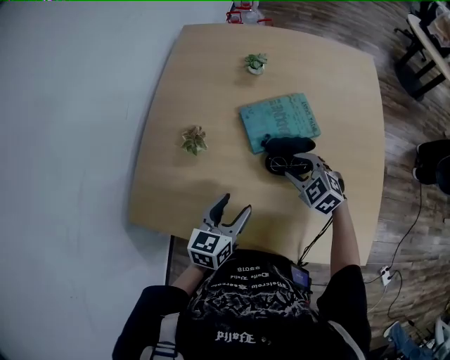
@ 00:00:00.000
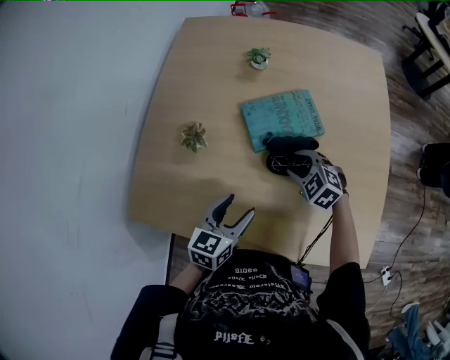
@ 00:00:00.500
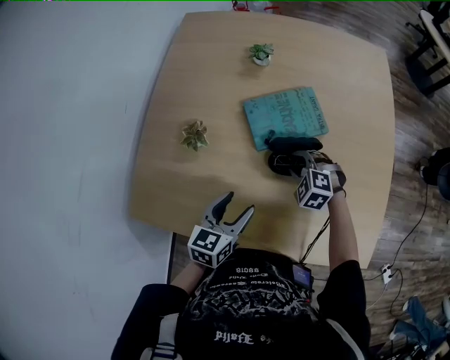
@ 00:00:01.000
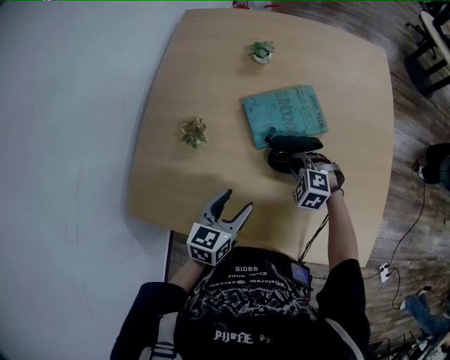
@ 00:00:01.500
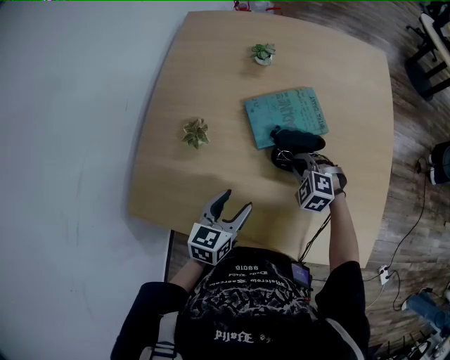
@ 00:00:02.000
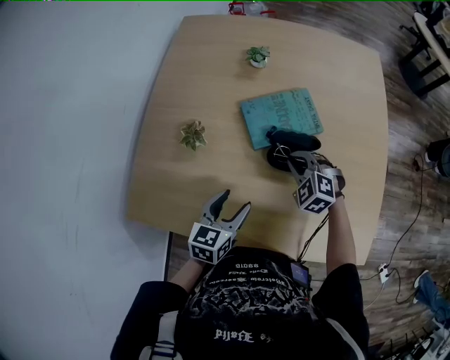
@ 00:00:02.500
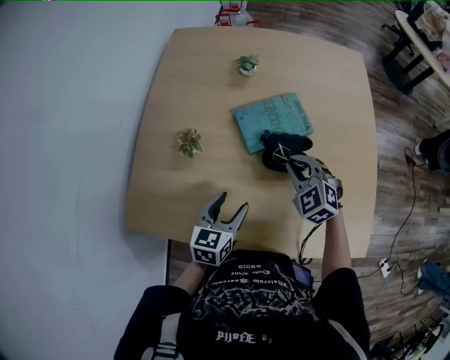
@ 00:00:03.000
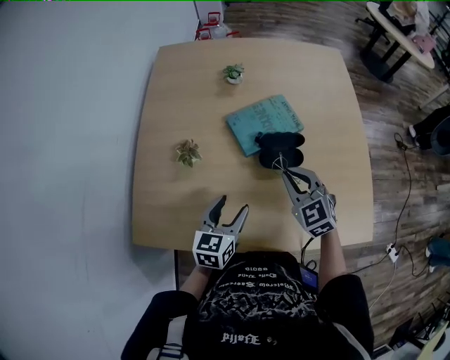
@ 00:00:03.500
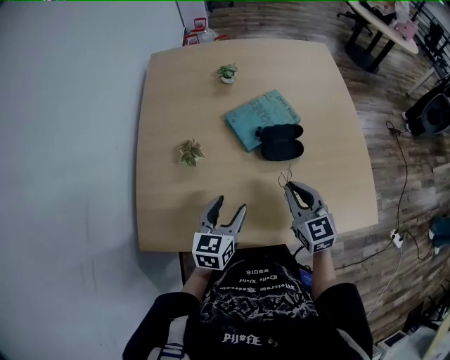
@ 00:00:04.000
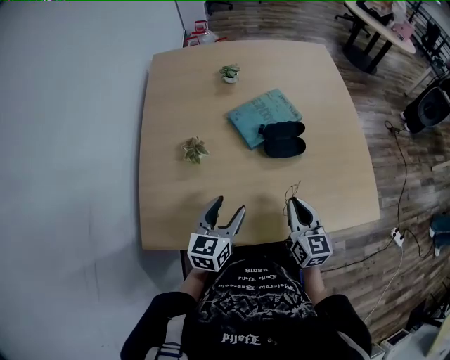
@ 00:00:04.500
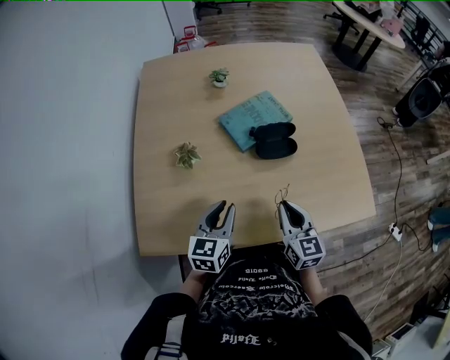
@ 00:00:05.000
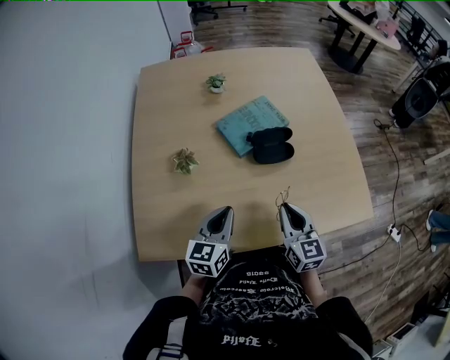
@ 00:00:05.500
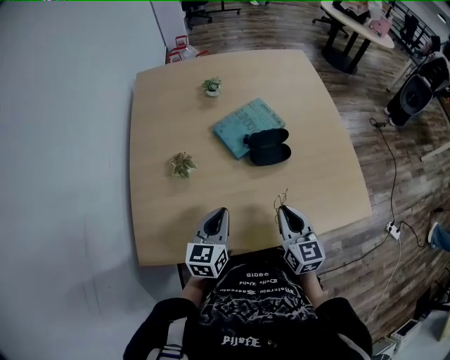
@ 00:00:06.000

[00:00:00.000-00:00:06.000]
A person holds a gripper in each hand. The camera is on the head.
00:00:00.000 to 00:00:02.000: The right gripper shifts some 5 cm downward, rotates some 20 degrees, and closes.
00:00:02.000 to 00:00:04.000: The right gripper travels upward and backward by approximately 20 cm, and tilts its fingers roughly 30 degrees upward; the left gripper goes roughly 5 cm to the left.
00:00:04.000 to 00:00:06.000: The right gripper heads backward, covering some 5 cm. The left gripper closes its fingers.

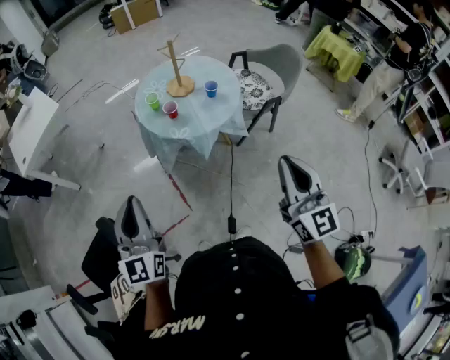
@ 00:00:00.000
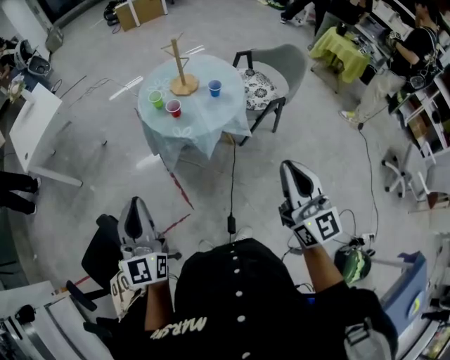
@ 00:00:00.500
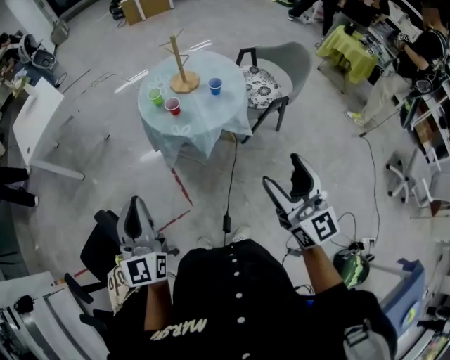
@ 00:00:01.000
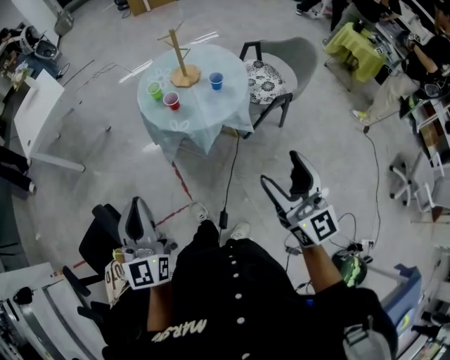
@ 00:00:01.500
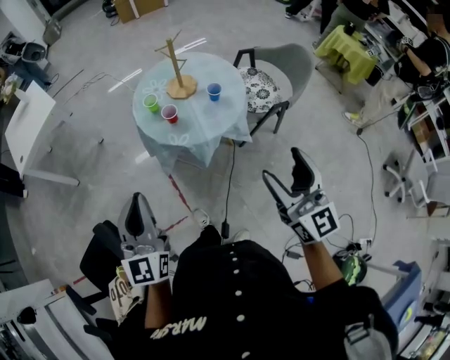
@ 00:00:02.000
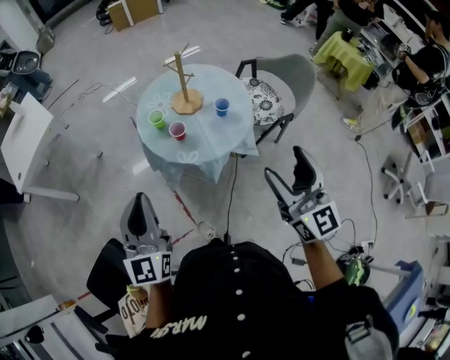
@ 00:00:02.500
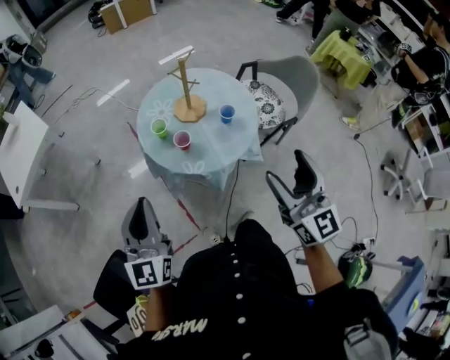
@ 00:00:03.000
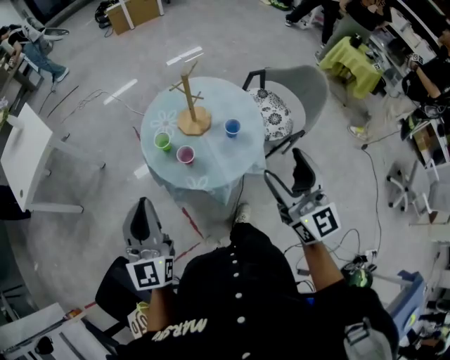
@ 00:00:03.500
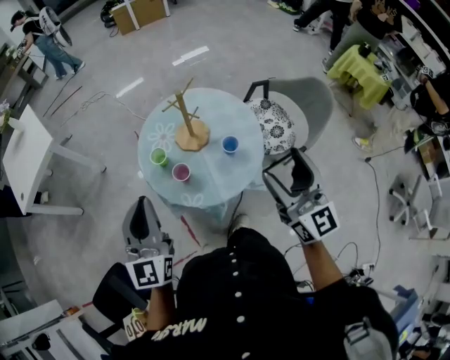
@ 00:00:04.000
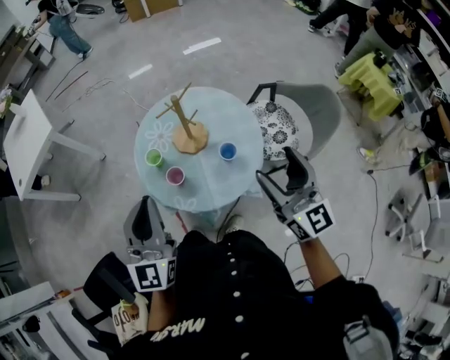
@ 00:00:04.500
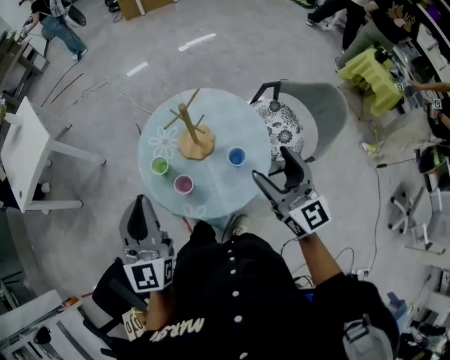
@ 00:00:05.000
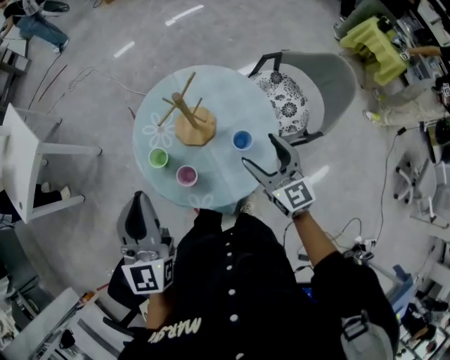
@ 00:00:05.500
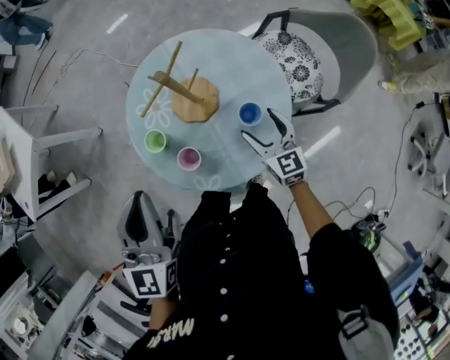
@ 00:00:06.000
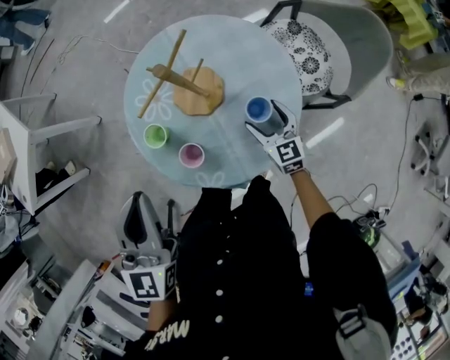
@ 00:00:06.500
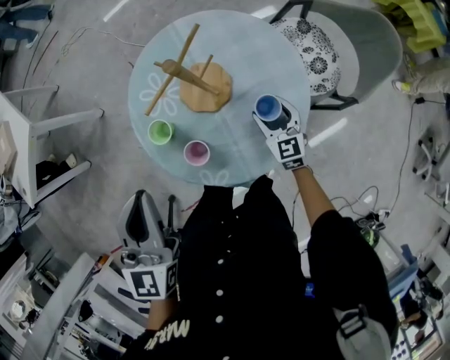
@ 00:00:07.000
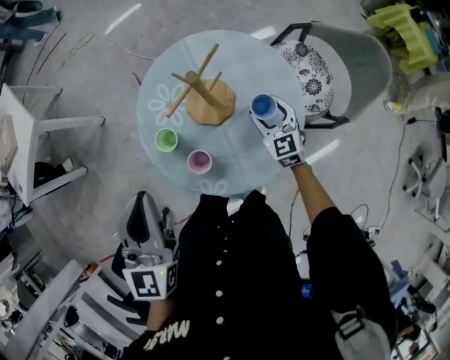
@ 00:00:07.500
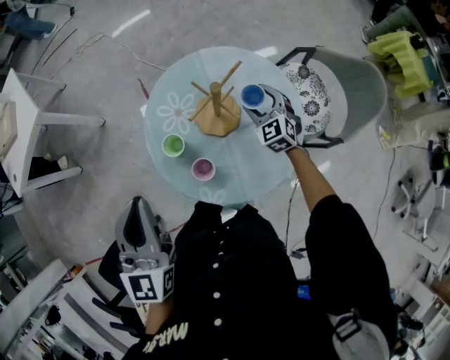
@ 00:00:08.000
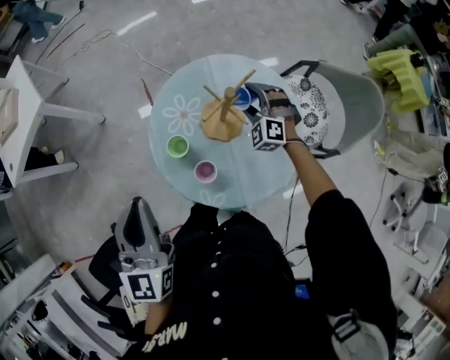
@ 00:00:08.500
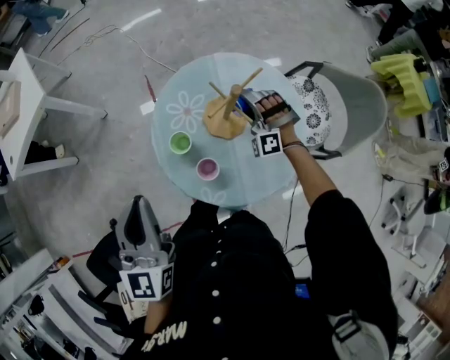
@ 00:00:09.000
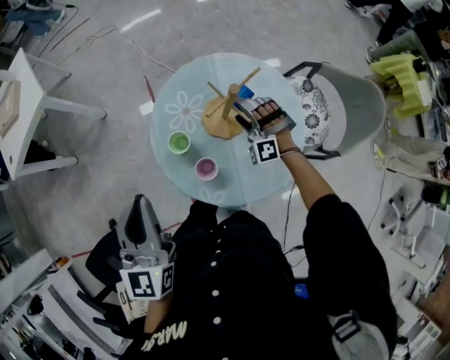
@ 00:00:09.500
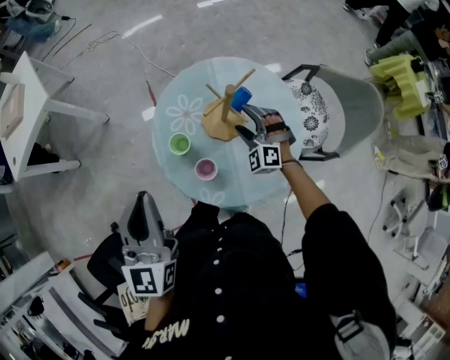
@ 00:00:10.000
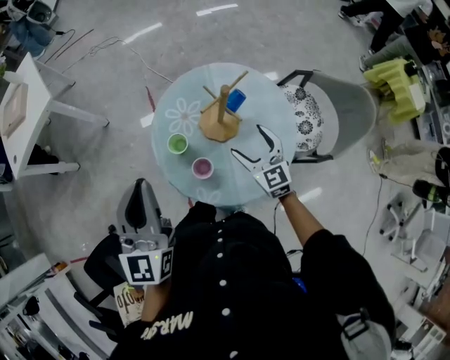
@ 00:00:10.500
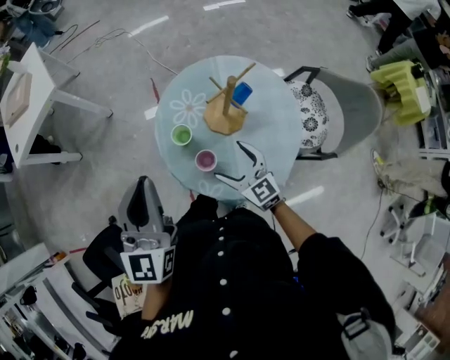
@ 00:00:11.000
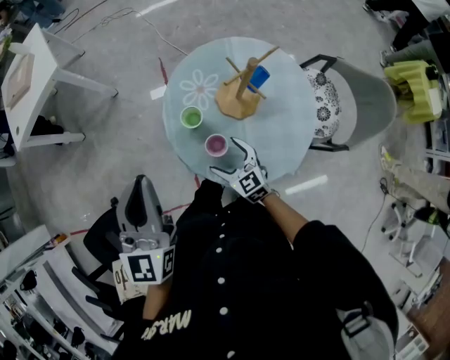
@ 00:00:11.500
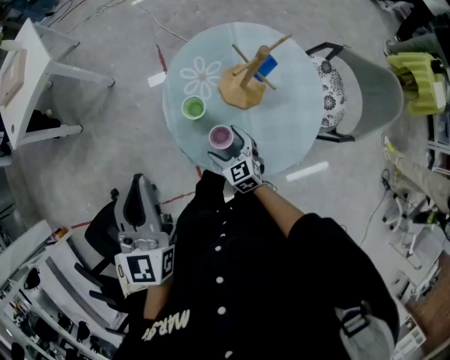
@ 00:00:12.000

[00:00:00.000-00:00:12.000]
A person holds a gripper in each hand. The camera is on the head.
00:00:00.000 to 00:00:02.000: The right gripper moves forward, some 10 cm, and opens its fingers; the left gripper heads forward and to the right, covering some 10 cm.
00:00:02.000 to 00:00:04.000: The grippers both shift forward by some 30 cm.
00:00:04.000 to 00:00:06.000: The right gripper goes approximately 40 cm downward and forward, and tips its fingers downward by some 30 degrees, while the left gripper heads forward and downward, covering about 20 cm.
00:00:06.000 to 00:00:08.000: The left gripper shifts about 10 cm to the left, while the right gripper heads forward, covering roughly 15 cm, and changes its angle by roughly 40 degrees.
00:00:08.000 to 00:00:10.000: The right gripper is displaced to the left by some 10 cm, and rotates roughly 30 degrees.
00:00:10.000 to 00:00:12.000: The right gripper travels to the left, backward and downward by approximately 25 cm, and rotates around the line of its fingers by some 50 degrees, clockwise from behind. Meanwhile the left gripper goes about 5 cm to the left.

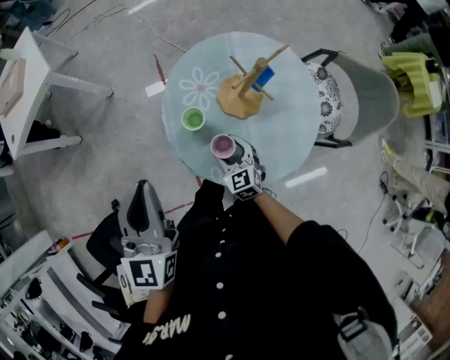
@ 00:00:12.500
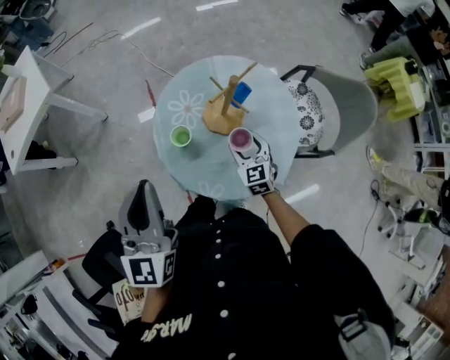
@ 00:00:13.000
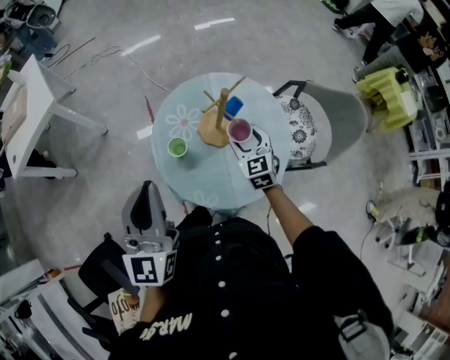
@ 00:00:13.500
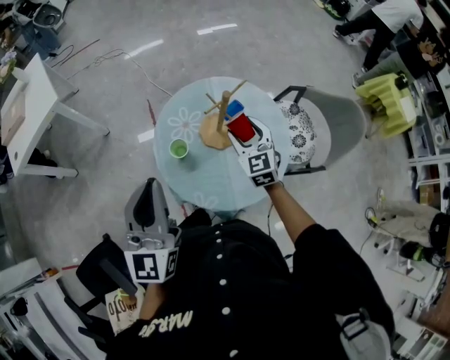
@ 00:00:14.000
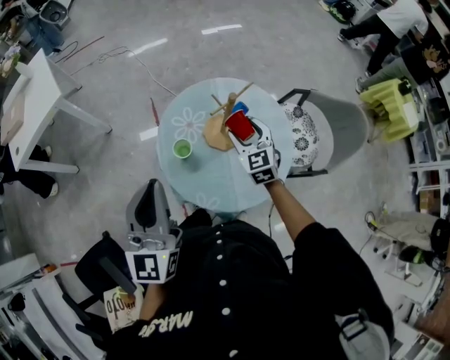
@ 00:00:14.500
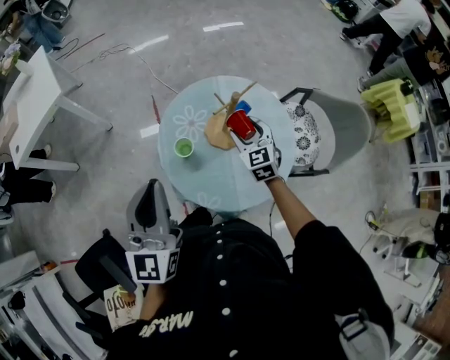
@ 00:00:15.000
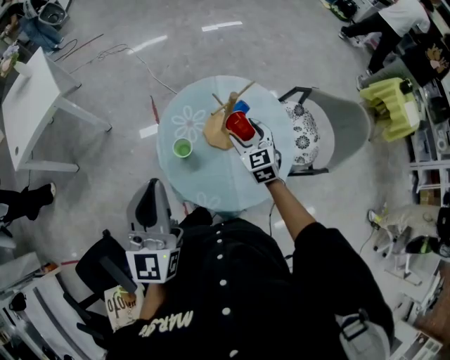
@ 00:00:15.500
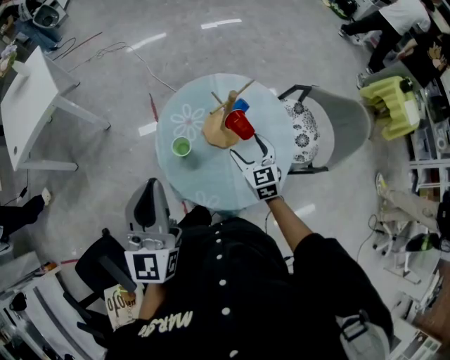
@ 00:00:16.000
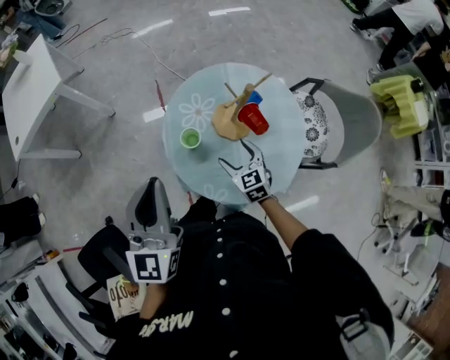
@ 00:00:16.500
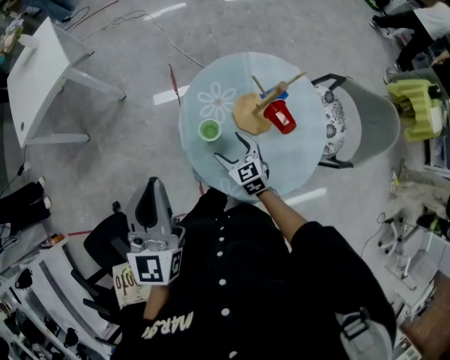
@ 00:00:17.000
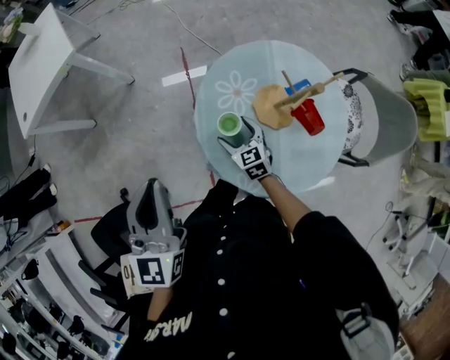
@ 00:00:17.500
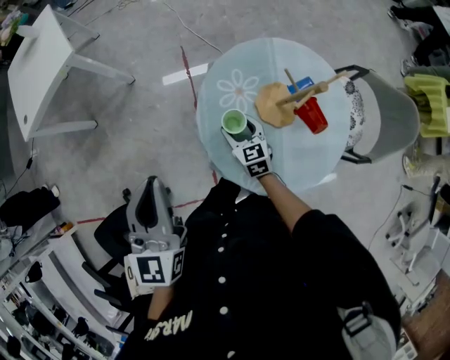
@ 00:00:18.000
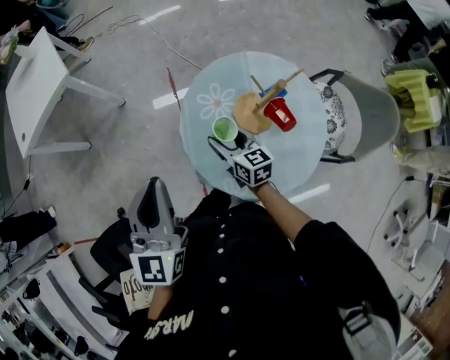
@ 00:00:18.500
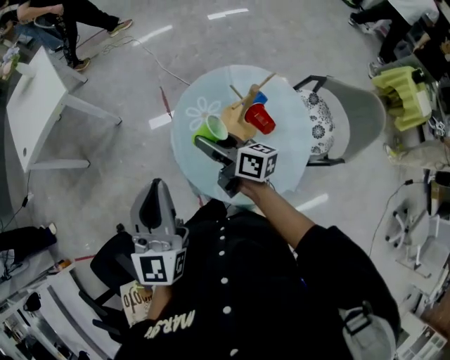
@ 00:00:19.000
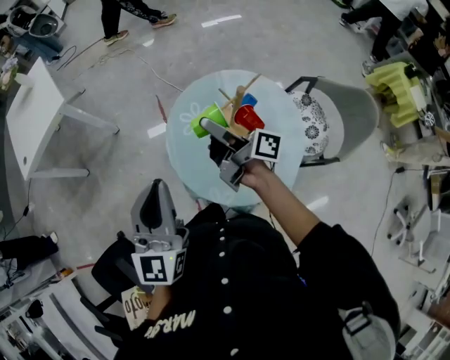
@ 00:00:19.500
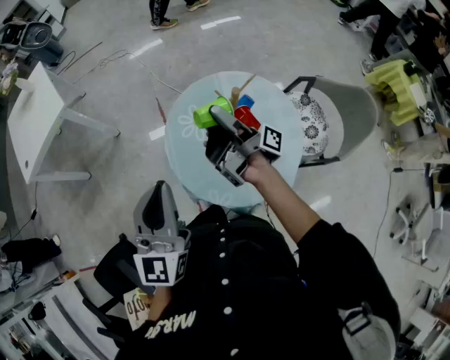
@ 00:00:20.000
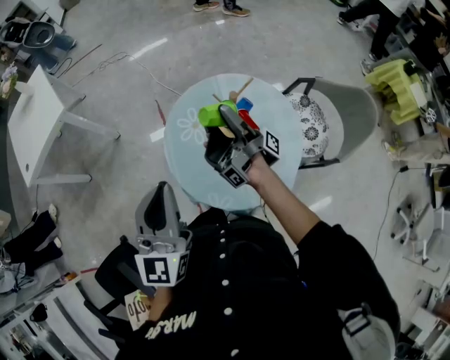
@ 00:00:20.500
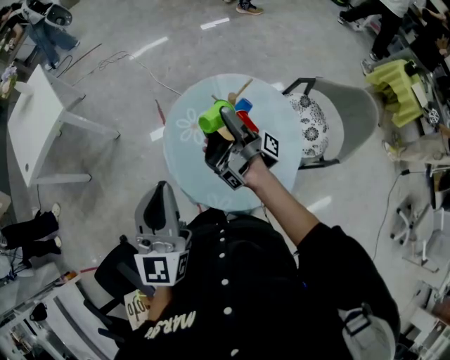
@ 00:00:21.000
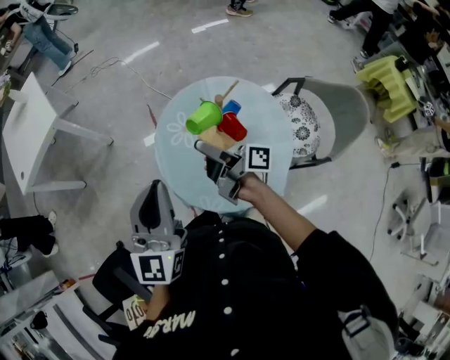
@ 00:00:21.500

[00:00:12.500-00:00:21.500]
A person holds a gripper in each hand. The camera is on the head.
00:00:12.500 to 00:00:14.500: The left gripper heads upward and to the right, covering about 10 cm, while the right gripper is displaced upward, to the right and forward by roughly 25 cm.
00:00:14.500 to 00:00:17.000: The left gripper moves to the left and downward, some 10 cm; the right gripper shifts approximately 20 cm to the left and downward, and rotates roughly 20 degrees.
00:00:17.000 to 00:00:19.500: The left gripper shifts about 10 cm to the right and upward. The right gripper travels upward by some 25 cm, and rotates around the line of its fingers by roughly 70 degrees, clockwise from behind.
00:00:19.500 to 00:00:21.500: The left gripper ends up some 5 cm from where it was.
